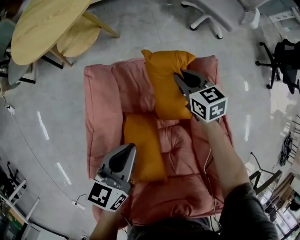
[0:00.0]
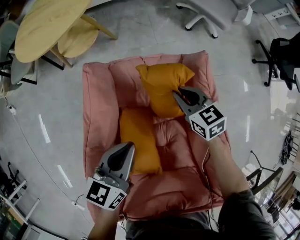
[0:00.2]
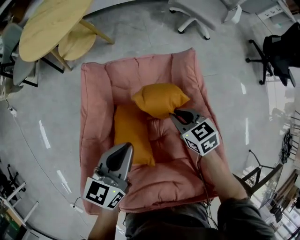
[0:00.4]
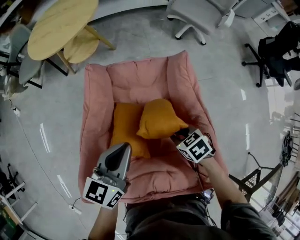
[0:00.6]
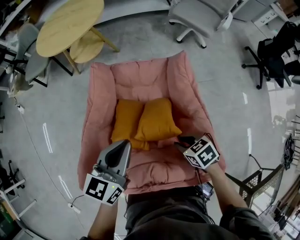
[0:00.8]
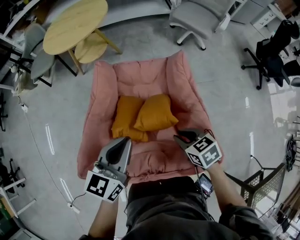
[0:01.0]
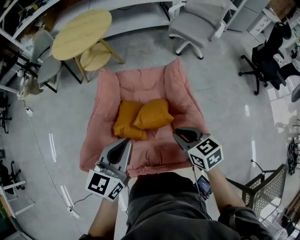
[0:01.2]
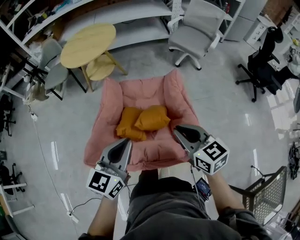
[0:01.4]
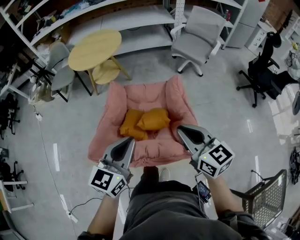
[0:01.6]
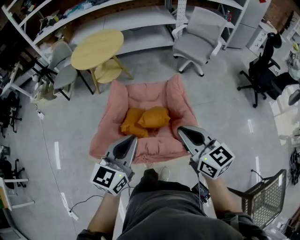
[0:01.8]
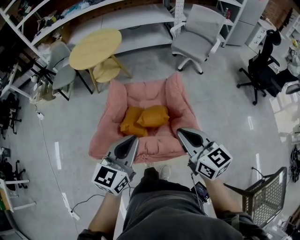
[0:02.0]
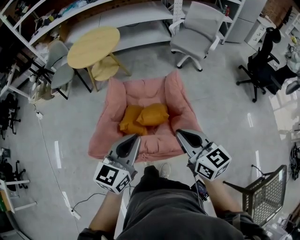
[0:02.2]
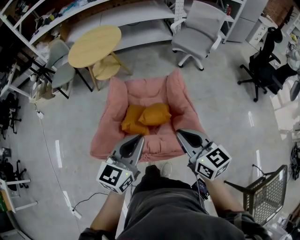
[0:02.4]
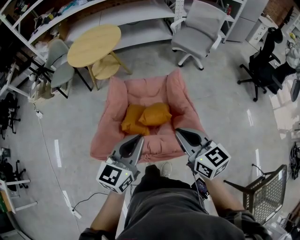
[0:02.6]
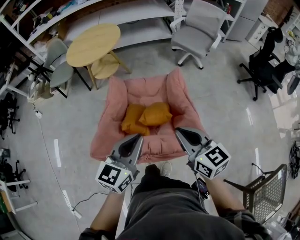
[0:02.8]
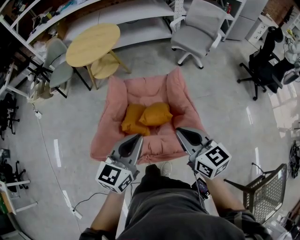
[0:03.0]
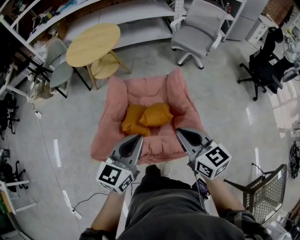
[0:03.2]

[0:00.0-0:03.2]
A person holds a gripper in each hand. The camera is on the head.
0:00.0 to 0:01.6: The grippers both shift backward and upward by some 50 cm. The right gripper changes its angle by approximately 20 degrees. The left gripper swivels about 30 degrees.
0:01.6 to 0:03.2: There are only small adjustments of the grippers.

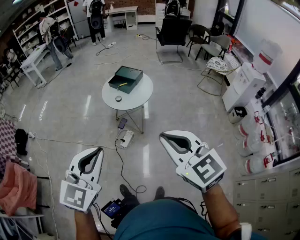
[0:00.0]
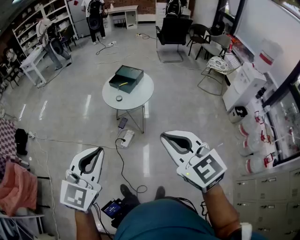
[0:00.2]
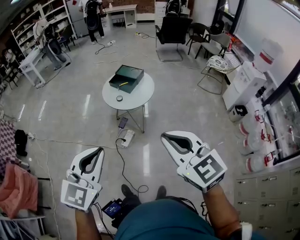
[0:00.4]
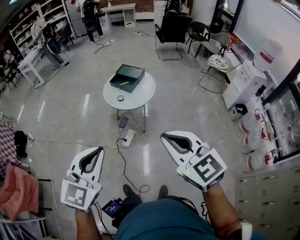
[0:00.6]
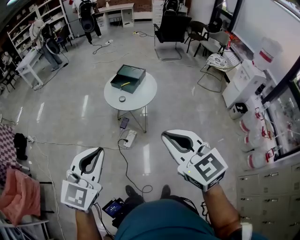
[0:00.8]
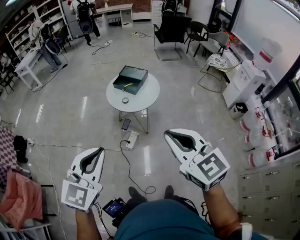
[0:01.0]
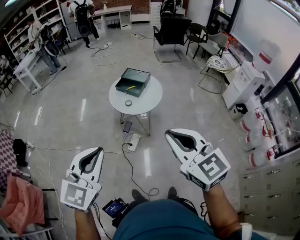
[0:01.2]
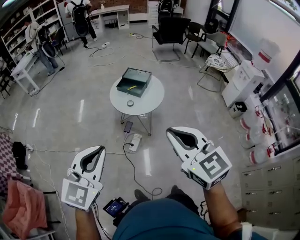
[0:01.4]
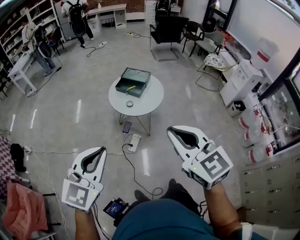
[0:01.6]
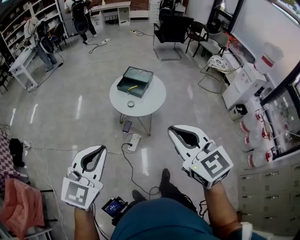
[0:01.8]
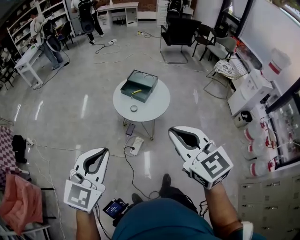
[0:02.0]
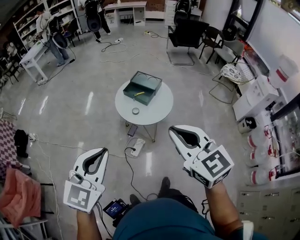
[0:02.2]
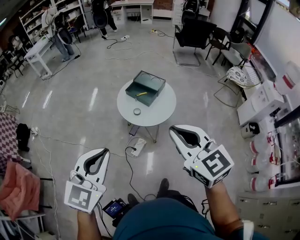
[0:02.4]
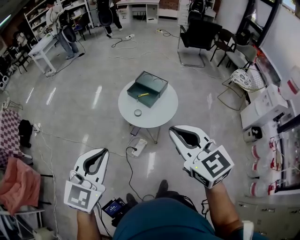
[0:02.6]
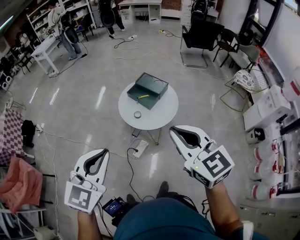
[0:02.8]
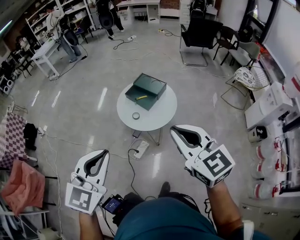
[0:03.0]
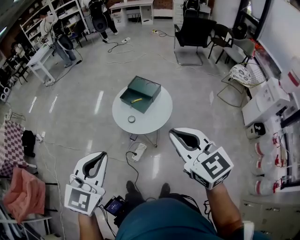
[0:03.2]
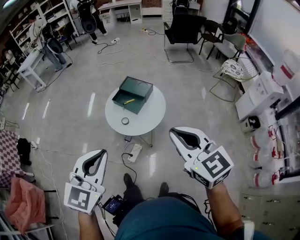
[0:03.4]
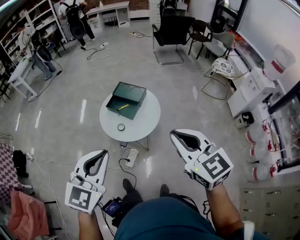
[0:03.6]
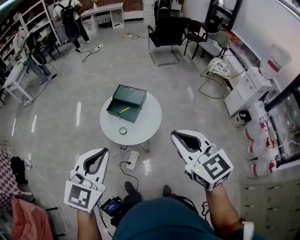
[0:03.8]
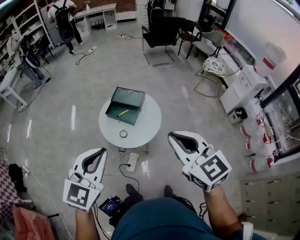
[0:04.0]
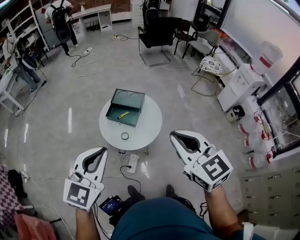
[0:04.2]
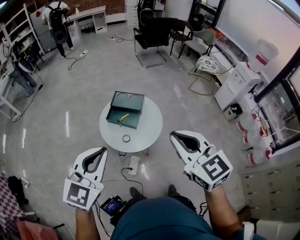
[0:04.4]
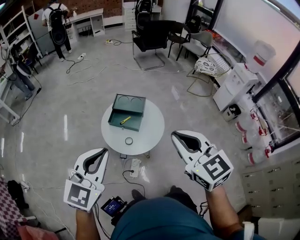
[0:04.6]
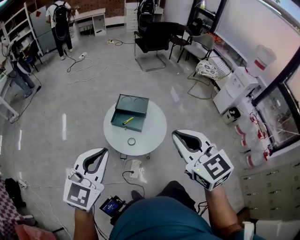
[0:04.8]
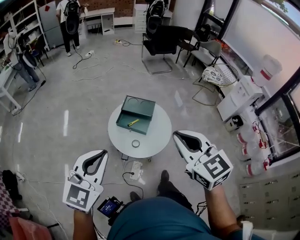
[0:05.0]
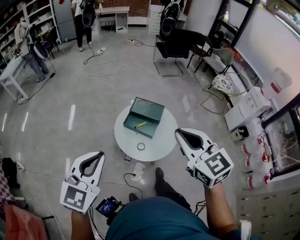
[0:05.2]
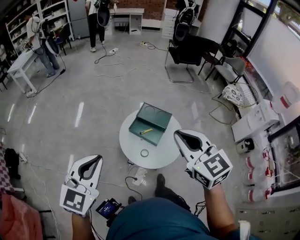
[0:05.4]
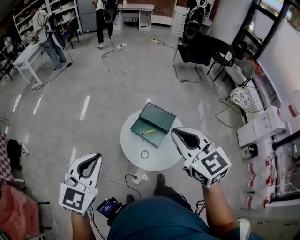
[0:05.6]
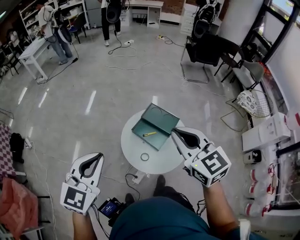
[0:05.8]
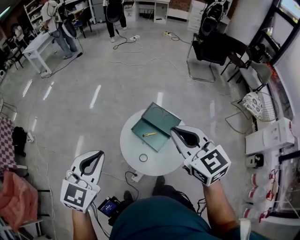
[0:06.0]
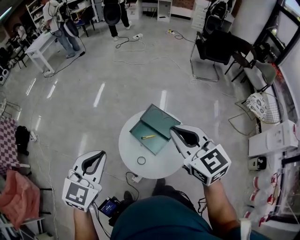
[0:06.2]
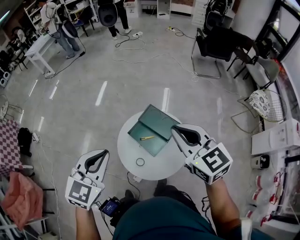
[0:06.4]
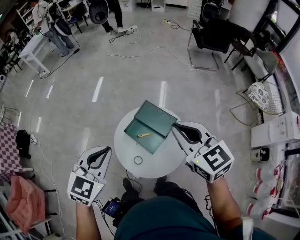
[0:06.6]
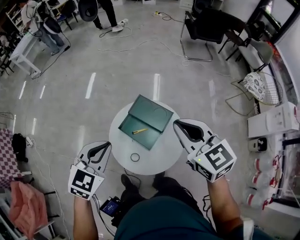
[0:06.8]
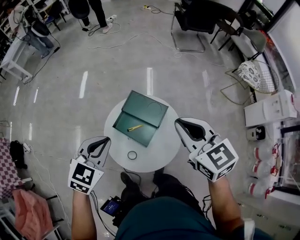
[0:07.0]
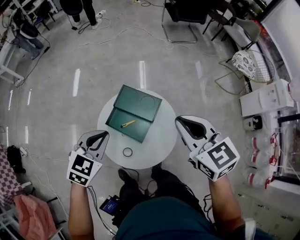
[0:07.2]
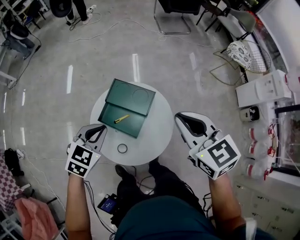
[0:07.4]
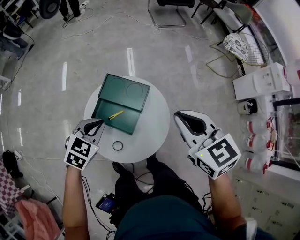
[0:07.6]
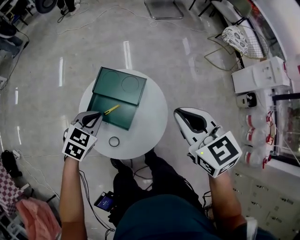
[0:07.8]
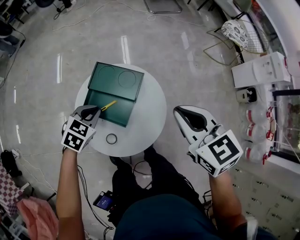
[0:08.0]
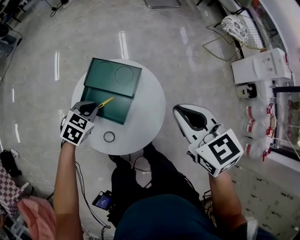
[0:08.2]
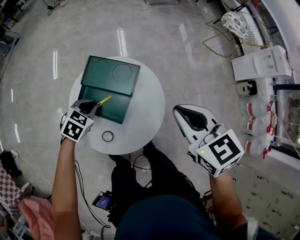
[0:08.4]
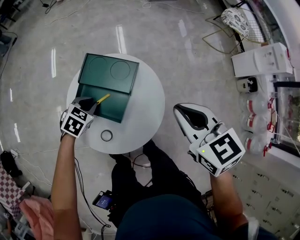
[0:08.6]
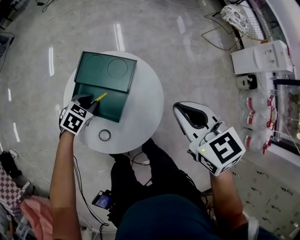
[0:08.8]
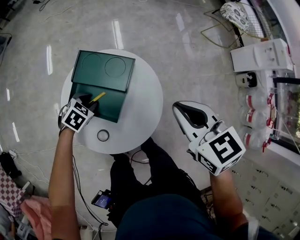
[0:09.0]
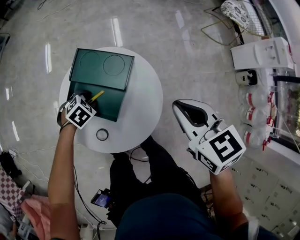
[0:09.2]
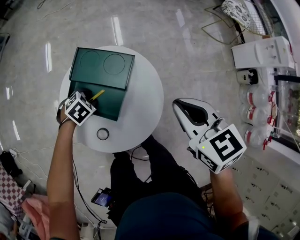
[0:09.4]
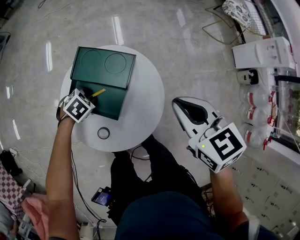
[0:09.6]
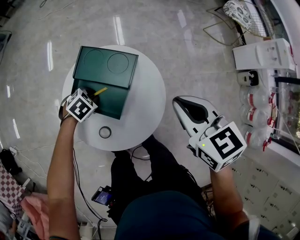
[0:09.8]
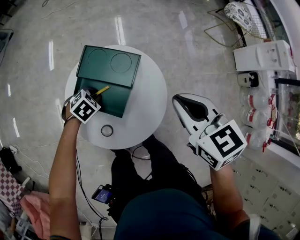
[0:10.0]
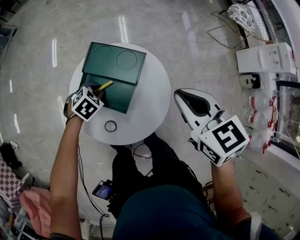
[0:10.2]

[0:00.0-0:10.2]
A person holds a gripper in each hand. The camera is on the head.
0:00.0 to 0:01.4: The grippers both shift to the left and forward by some 25 cm.
0:01.4 to 0:03.0: Both grippers move forward and to the right, some 25 cm.
0:03.0 to 0:04.4: The right gripper goes about 15 cm to the left and forward, and rotates roughly 20 degrees. The left gripper is displaced forward and to the left by about 25 cm, and swivels roughly 30 degrees.
0:04.4 to 0:05.8: The left gripper moves forward and to the left, roughly 20 cm, and rotates roughly 20 degrees, while the right gripper goes about 25 cm forward, and turns by approximately 20 degrees.
0:05.8 to 0:07.2: The right gripper travels to the right, downward and forward by approximately 25 cm, while the left gripper moves downward, forward and to the right, about 35 cm, and turns by roughly 30 degrees.
0:07.2 to 0:08.8: The left gripper is displaced downward by roughly 30 cm, and changes its angle by some 30 degrees. The right gripper goes roughly 20 cm downward and to the right.
0:08.8 to 0:10.2: The grippers stay close to where they were, moving slightly.

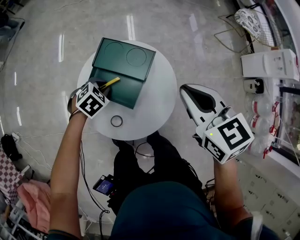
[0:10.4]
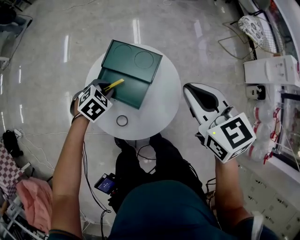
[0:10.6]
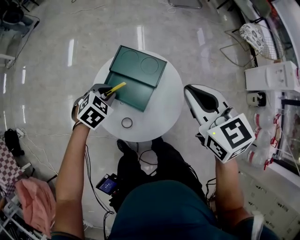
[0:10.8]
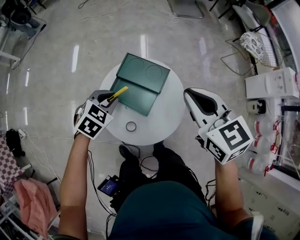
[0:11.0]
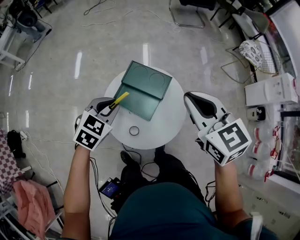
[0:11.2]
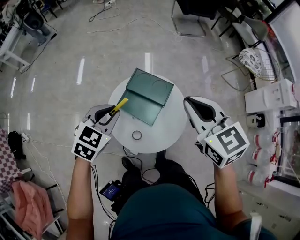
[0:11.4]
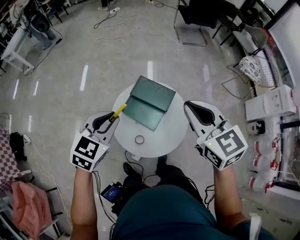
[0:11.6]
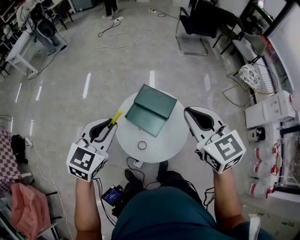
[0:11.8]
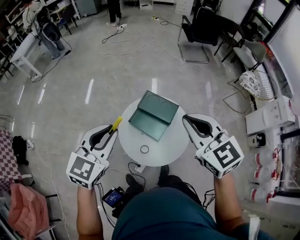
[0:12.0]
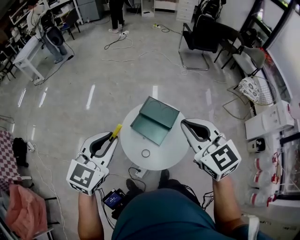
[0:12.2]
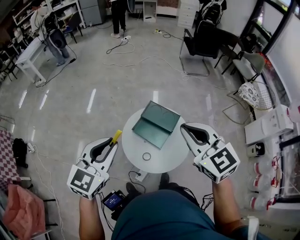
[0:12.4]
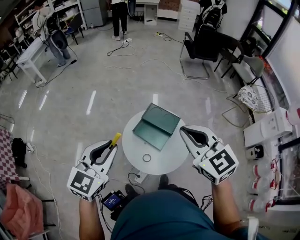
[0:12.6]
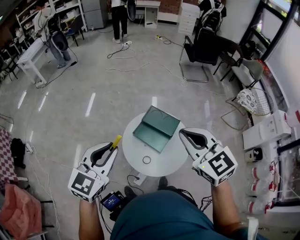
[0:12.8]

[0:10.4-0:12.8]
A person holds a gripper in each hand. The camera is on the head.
0:10.4 to 0:11.6: The right gripper moves upward and to the left, about 20 cm; the left gripper goes some 35 cm upward, and tilts its fingers roughly 40 degrees upward.
0:11.6 to 0:12.8: The left gripper is displaced upward, backward and to the left by about 20 cm. The right gripper travels backward, upward and to the left by approximately 15 cm.

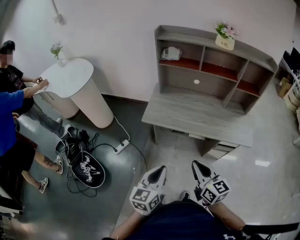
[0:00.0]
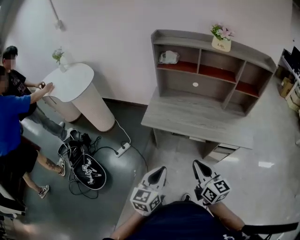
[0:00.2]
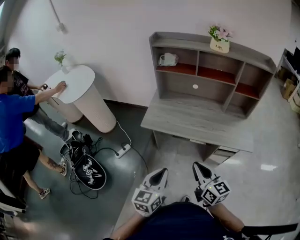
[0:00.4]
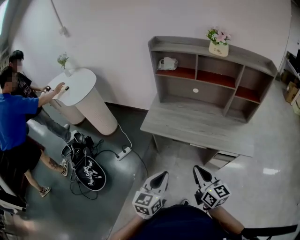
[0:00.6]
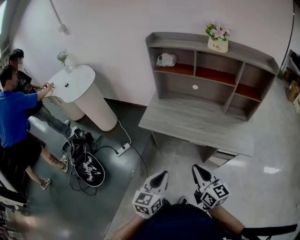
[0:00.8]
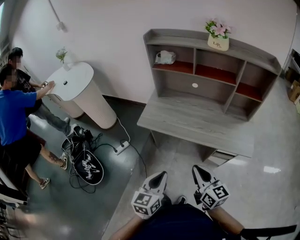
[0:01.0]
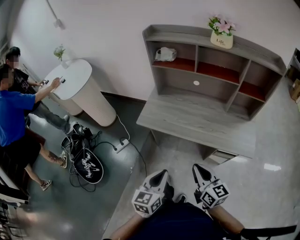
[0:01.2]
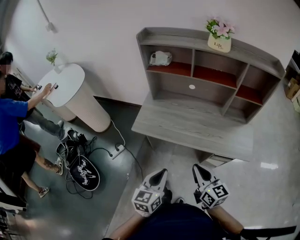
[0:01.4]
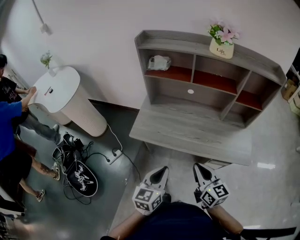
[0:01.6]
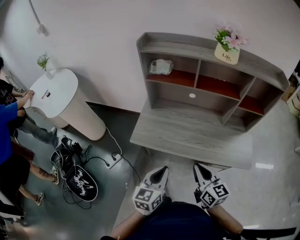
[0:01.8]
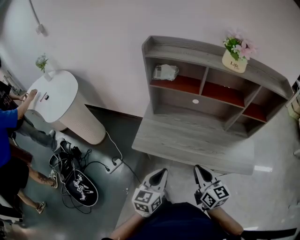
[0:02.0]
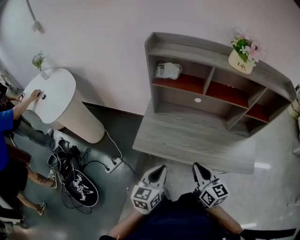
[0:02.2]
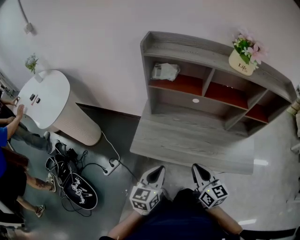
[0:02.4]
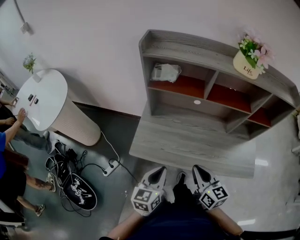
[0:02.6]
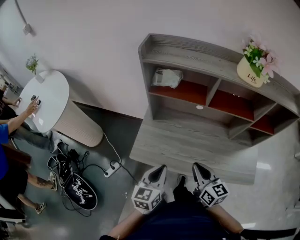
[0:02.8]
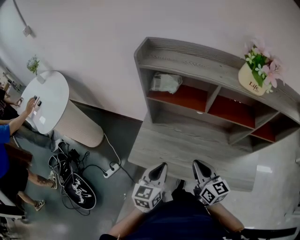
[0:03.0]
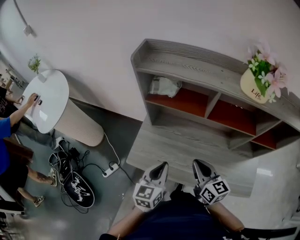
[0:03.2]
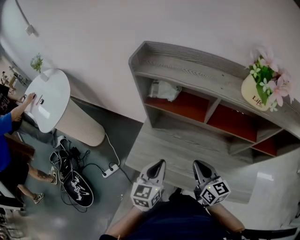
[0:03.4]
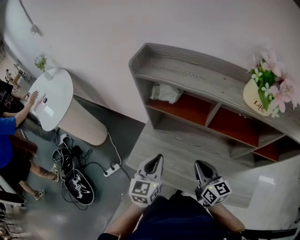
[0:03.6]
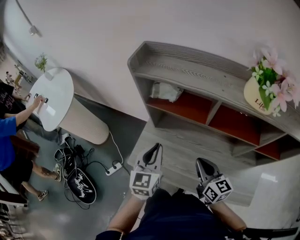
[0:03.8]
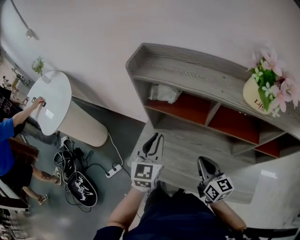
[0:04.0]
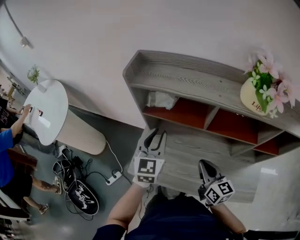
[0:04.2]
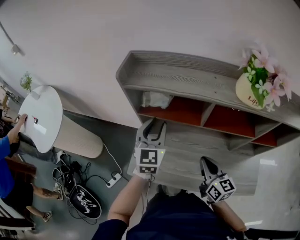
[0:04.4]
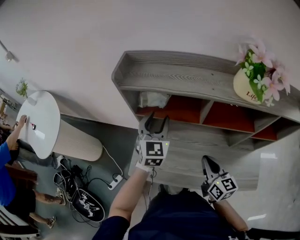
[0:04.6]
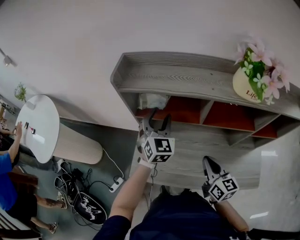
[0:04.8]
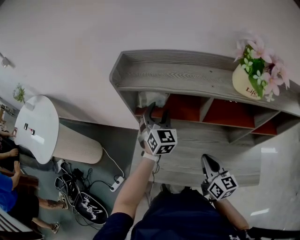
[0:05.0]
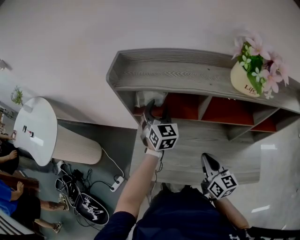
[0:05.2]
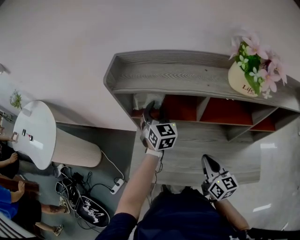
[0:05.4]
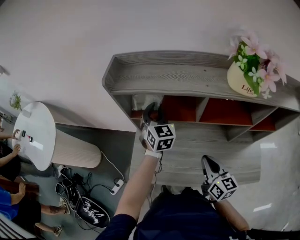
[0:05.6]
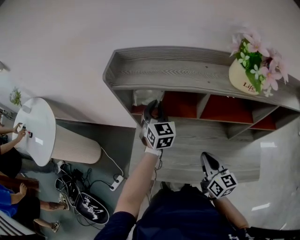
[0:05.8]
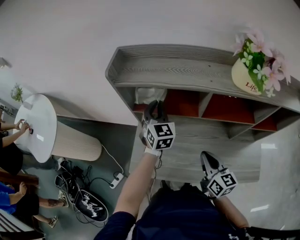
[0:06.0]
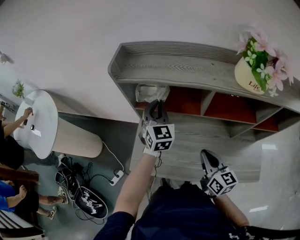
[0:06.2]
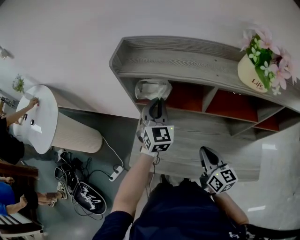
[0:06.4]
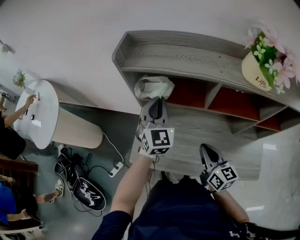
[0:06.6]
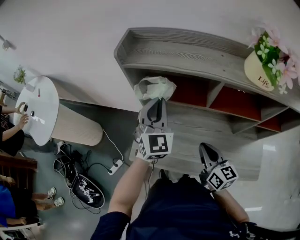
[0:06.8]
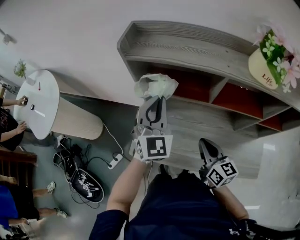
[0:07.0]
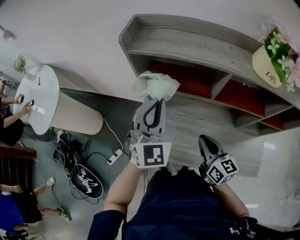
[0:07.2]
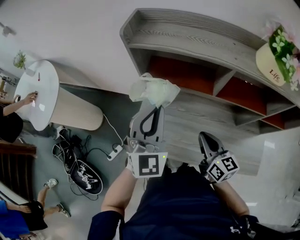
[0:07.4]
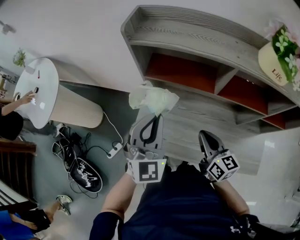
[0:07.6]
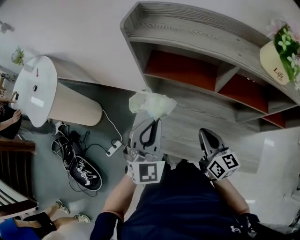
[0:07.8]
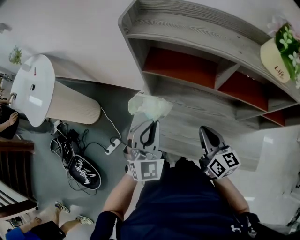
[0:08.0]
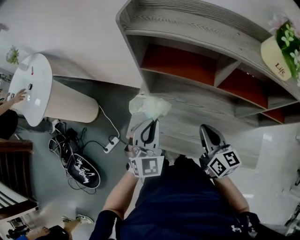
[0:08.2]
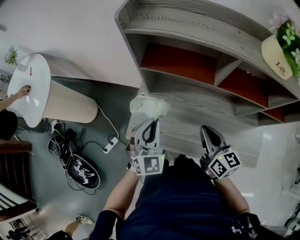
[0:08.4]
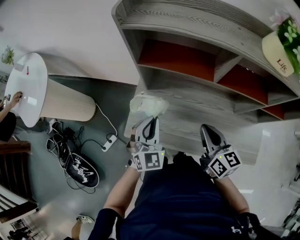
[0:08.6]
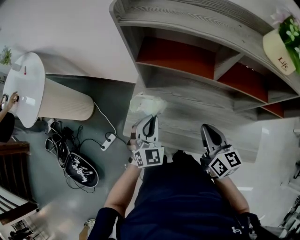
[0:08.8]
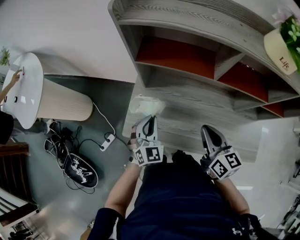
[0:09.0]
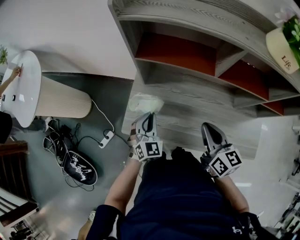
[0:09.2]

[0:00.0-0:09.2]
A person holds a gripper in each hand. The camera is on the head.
0:00.0 to 0:01.6: The two grippers go approximately 20 cm forward and to the right.
0:01.6 to 0:03.0: Both grippers travel together forward, roughly 25 cm.
0:03.0 to 0:04.6: The right gripper heads forward and to the right, covering roughly 10 cm, while the left gripper goes about 30 cm forward and upward, changes its angle by some 30 degrees, and opens up.
0:04.6 to 0:06.2: The left gripper closes up.
0:06.2 to 0:07.6: The left gripper is displaced backward by roughly 15 cm.
0:07.6 to 0:09.2: The left gripper moves downward, roughly 25 cm.
